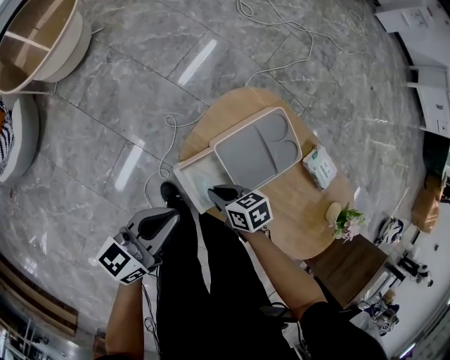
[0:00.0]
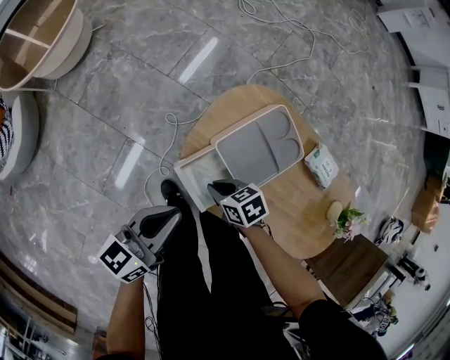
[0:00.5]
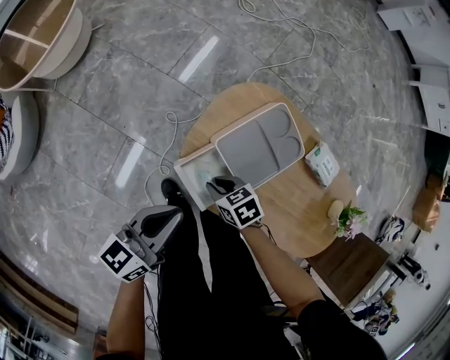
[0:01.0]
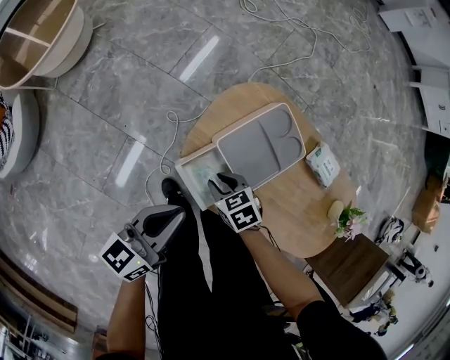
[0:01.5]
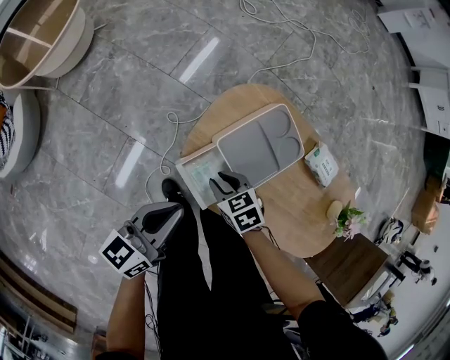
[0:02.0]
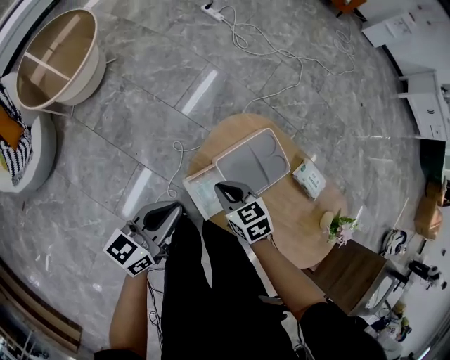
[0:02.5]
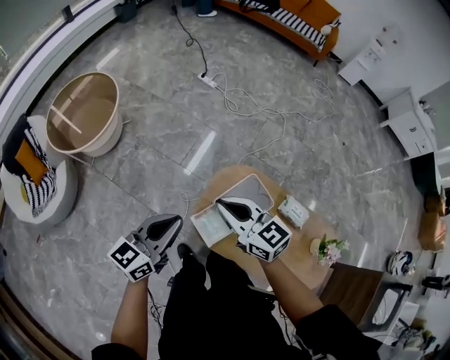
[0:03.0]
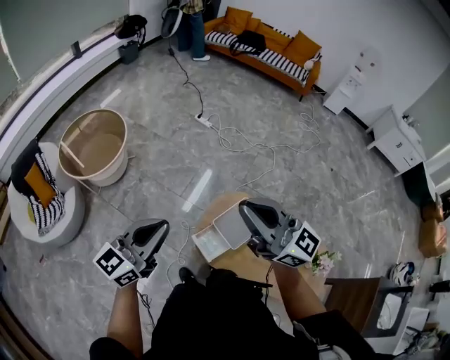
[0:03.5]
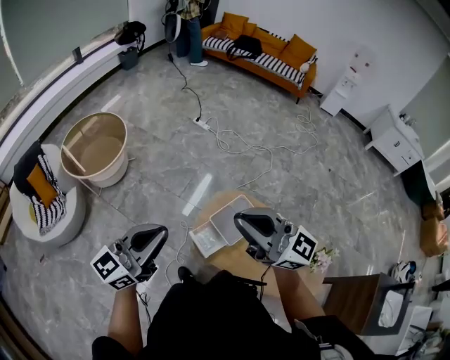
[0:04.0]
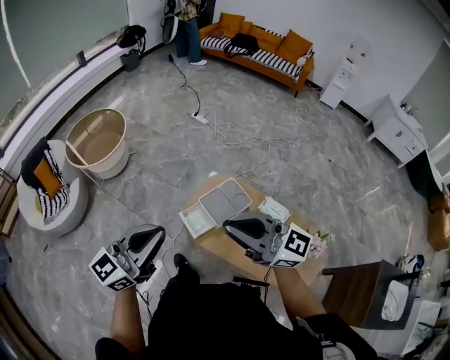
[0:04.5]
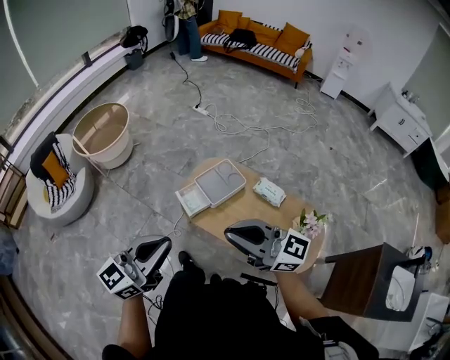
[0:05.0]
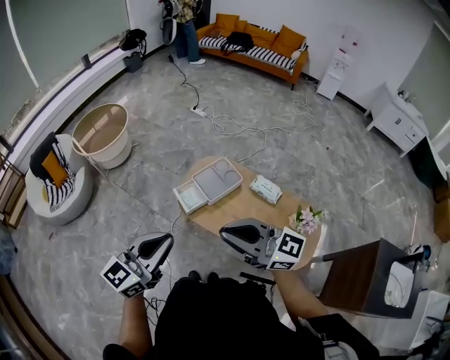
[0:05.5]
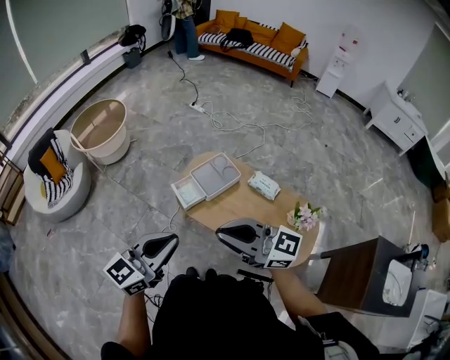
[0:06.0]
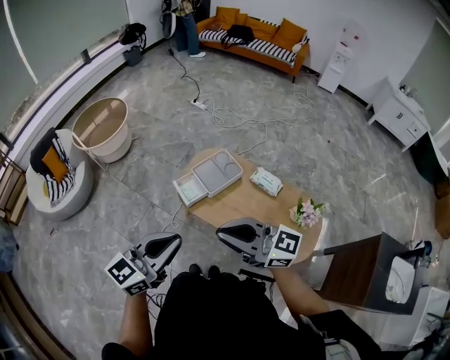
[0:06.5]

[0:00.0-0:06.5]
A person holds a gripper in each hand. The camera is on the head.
0:00.0 to 0:02.0: The right gripper turns by about 20 degrees.
0:02.0 to 0:04.5: The left gripper goes approximately 50 cm upward and backward, and changes its angle by some 40 degrees, while the right gripper goes approximately 70 cm upward, angles its fingers upward, by some 70 degrees, and closes its fingers.
0:04.5 to 0:06.5: Both grippers move backward, about 20 cm.

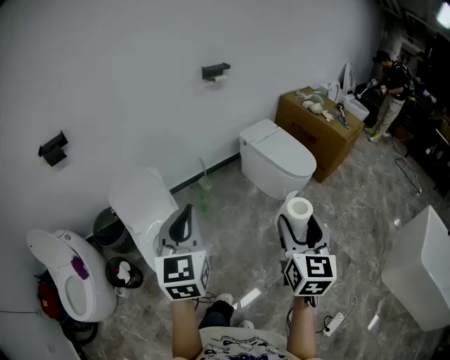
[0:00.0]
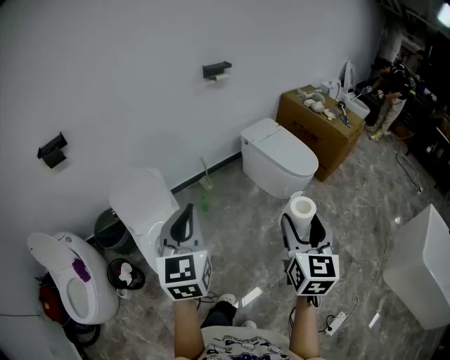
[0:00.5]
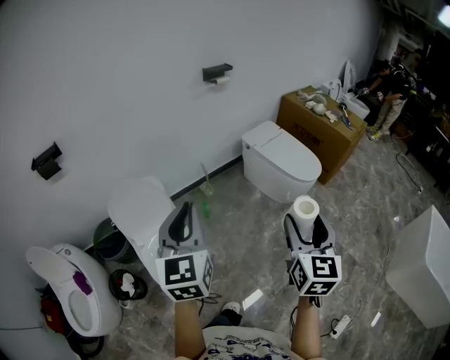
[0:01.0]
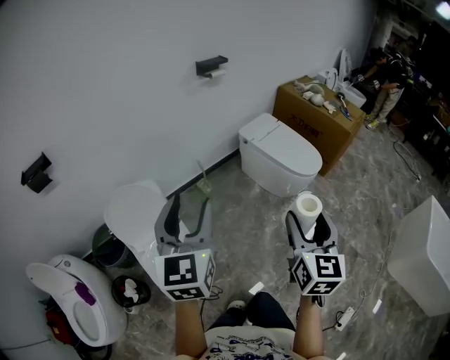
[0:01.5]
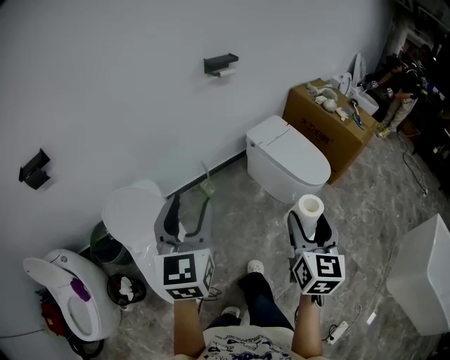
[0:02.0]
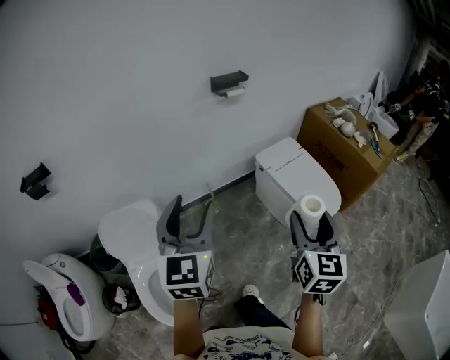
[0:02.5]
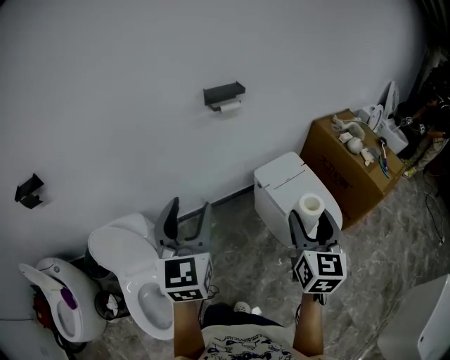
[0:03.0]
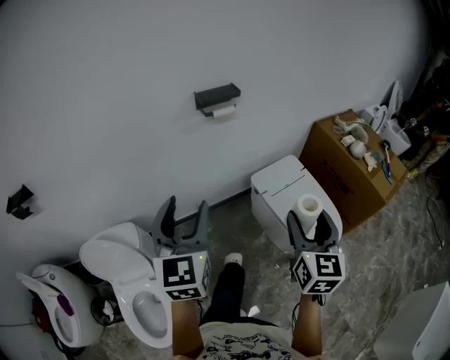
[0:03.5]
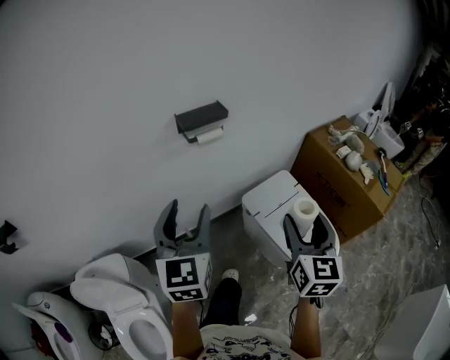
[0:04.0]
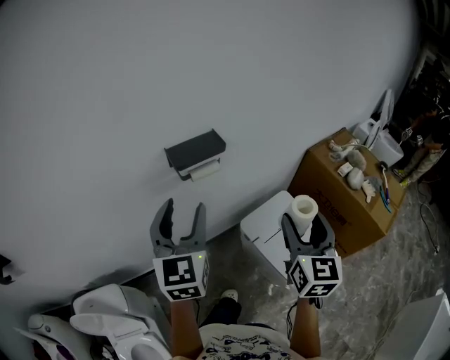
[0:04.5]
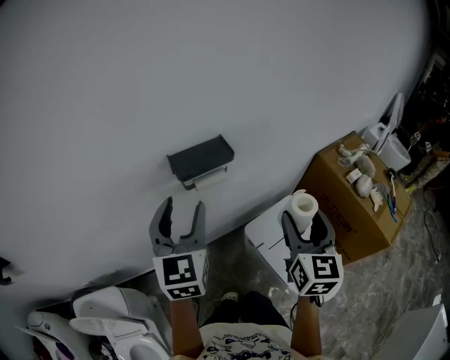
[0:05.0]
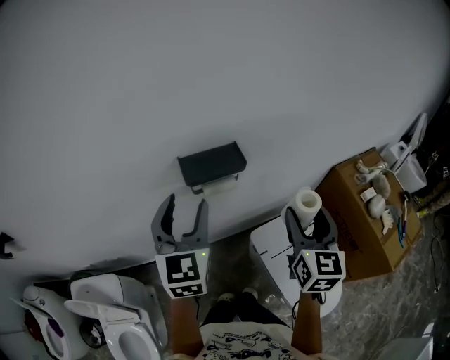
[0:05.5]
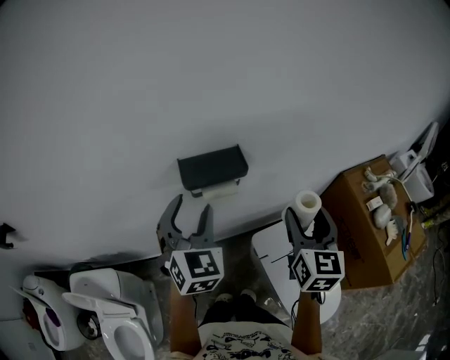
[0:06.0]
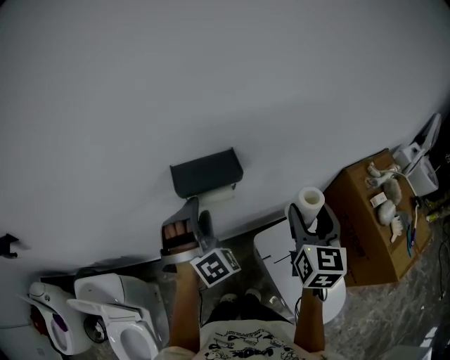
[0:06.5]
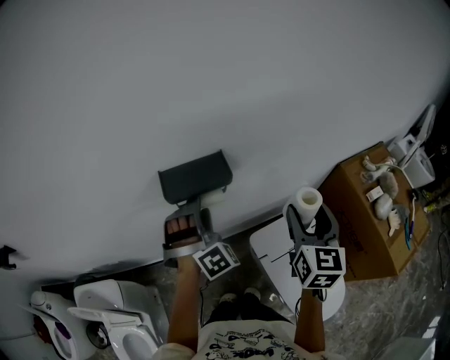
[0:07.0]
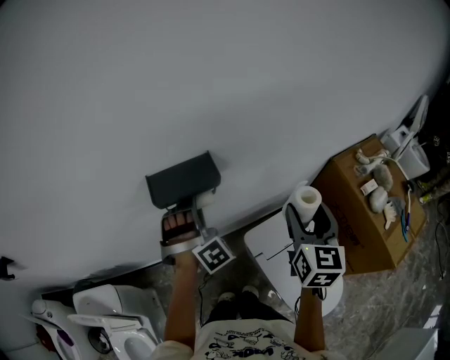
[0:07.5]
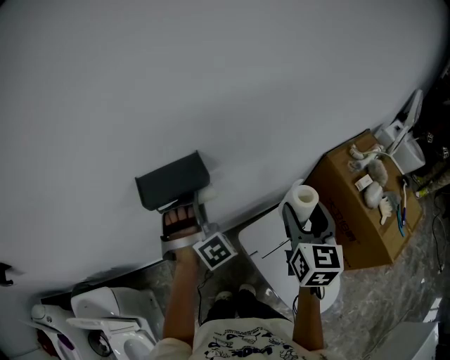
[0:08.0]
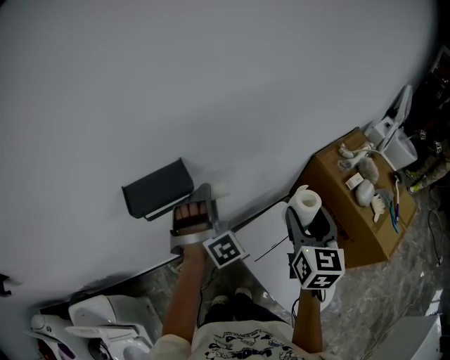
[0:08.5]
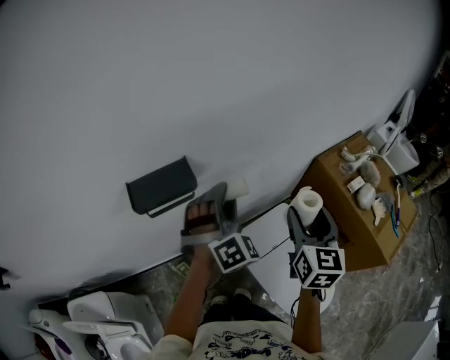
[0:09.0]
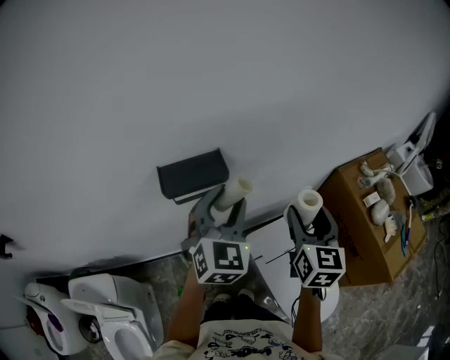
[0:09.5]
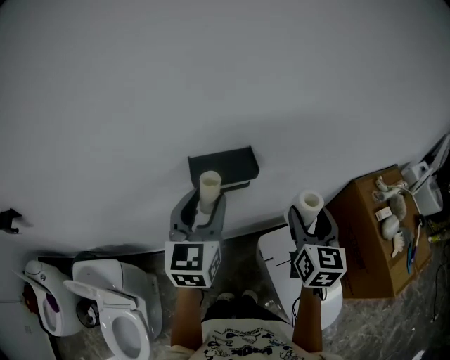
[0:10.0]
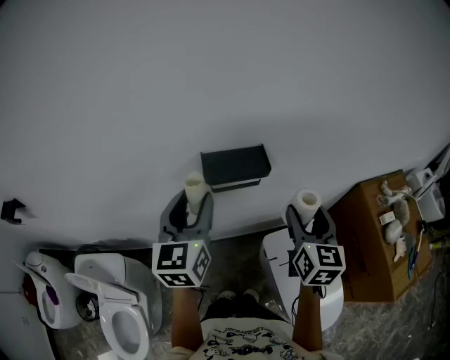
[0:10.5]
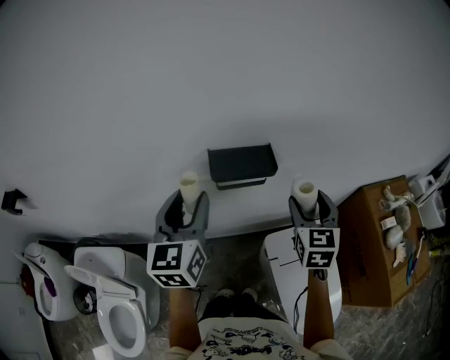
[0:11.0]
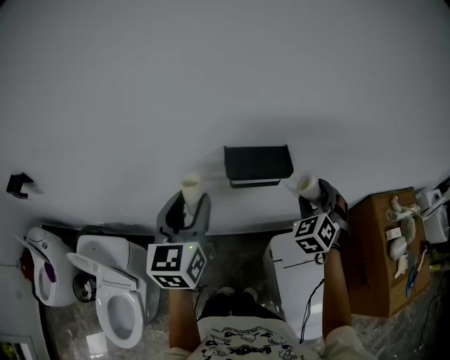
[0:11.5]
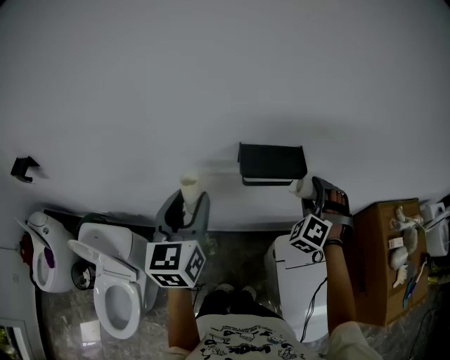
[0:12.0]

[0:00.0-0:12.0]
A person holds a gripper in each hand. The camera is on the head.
0:00.0 to 0:02.0: Both grippers travel together forward, some 20 cm. The left gripper opens its fingers.
0:02.0 to 0:04.0: The pair of grippers is taken forward, about 50 cm.
0:04.0 to 0:06.0: The two grippers go roughly 30 cm forward. The left gripper swivels some 30 degrees.
0:06.0 to 0:08.0: The left gripper travels downward, to the right and forward by some 15 cm, and rotates around the line of its fingers by roughly 50 degrees, clockwise from behind. The right gripper goes about 10 cm to the right.
0:08.0 to 0:10.0: The right gripper travels to the left by about 10 cm; the left gripper moves upward, backward and to the left, roughly 15 cm, and twists approximately 80 degrees counterclockwise, seen from behind.
0:10.0 to 0:12.0: The left gripper moves to the left, about 15 cm. The right gripper moves forward, to the left and downward, roughly 15 cm, and rolls counterclockwise, seen from behind, by roughly 90 degrees.

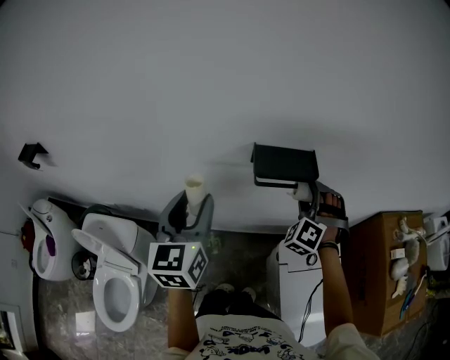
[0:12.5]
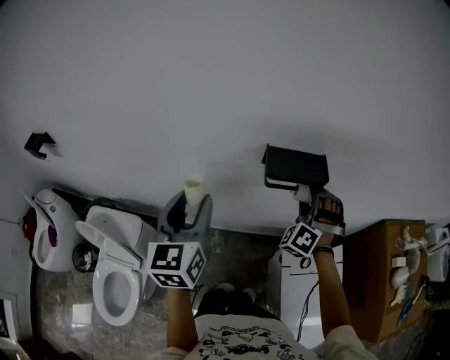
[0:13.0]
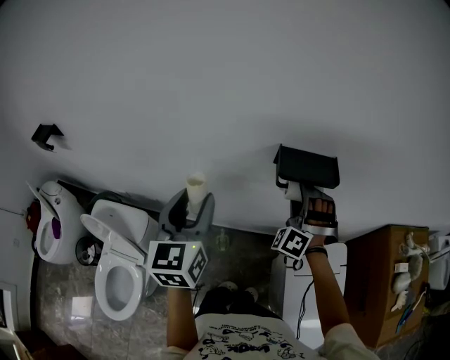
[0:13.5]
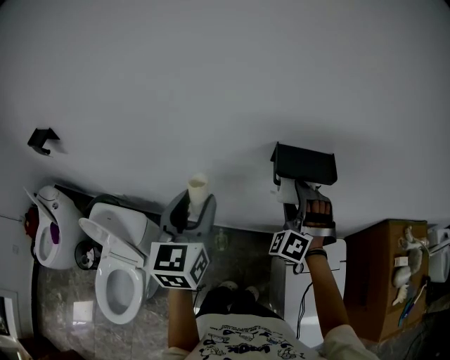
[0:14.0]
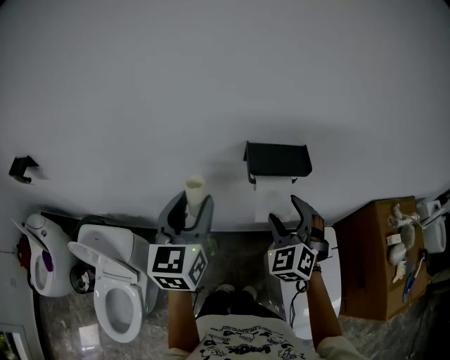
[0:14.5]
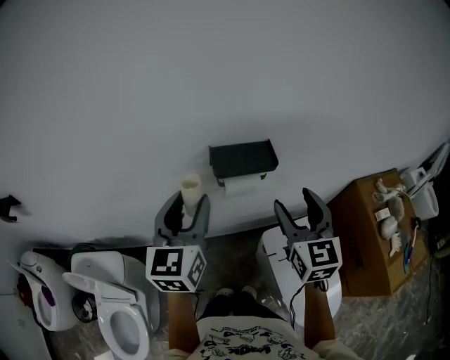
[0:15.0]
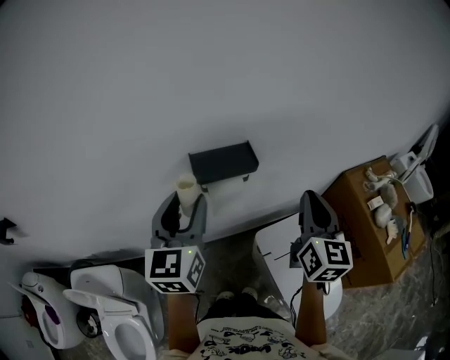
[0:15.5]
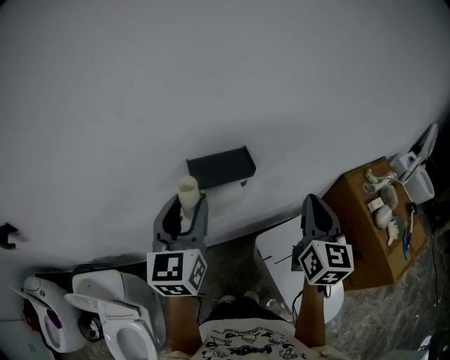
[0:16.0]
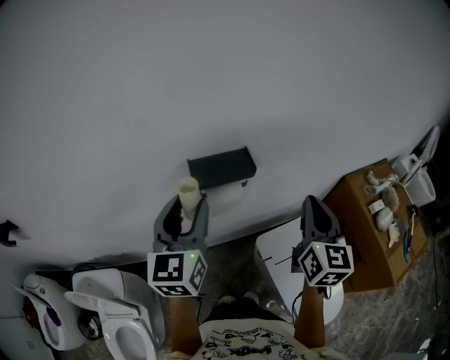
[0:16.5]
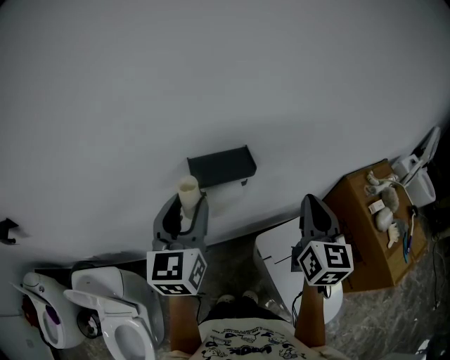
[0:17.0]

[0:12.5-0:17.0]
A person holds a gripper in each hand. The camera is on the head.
0:12.5 to 0:14.5: The right gripper shifts roughly 10 cm backward and to the left, and rotates roughly 30 degrees.
0:14.5 to 0:17.0: The left gripper travels to the right by some 10 cm, while the right gripper travels to the right and upward by some 20 cm, rolls clockwise, seen from behind, by about 60 degrees, and closes.

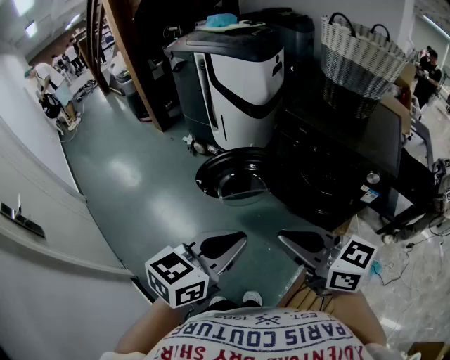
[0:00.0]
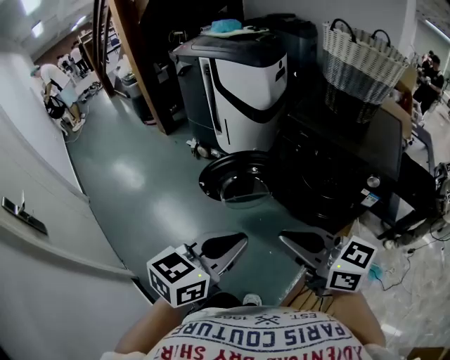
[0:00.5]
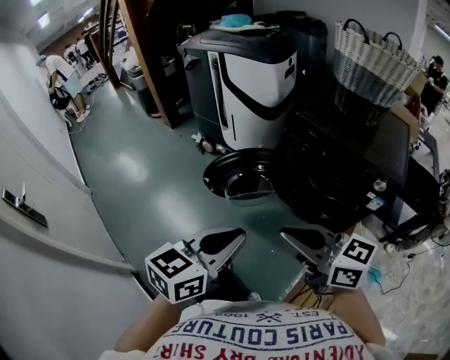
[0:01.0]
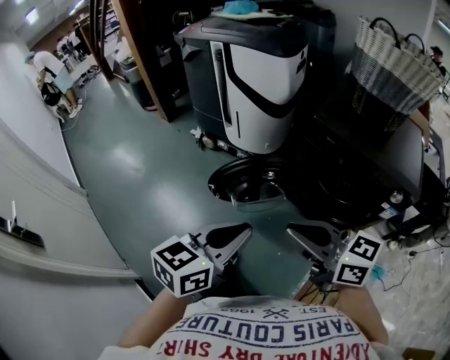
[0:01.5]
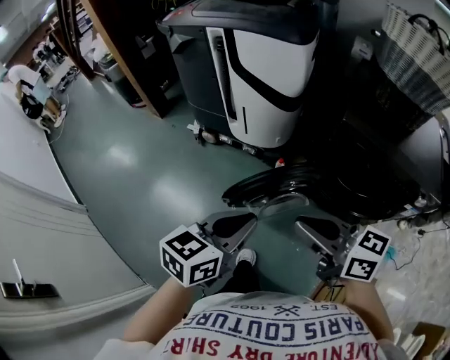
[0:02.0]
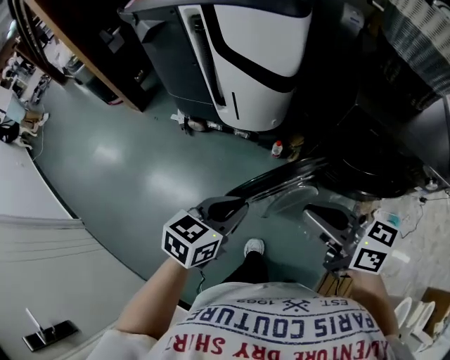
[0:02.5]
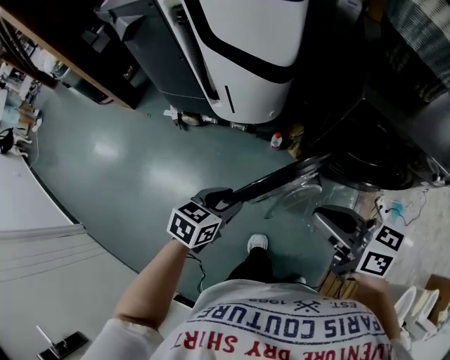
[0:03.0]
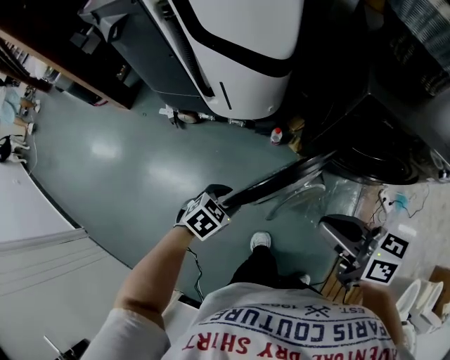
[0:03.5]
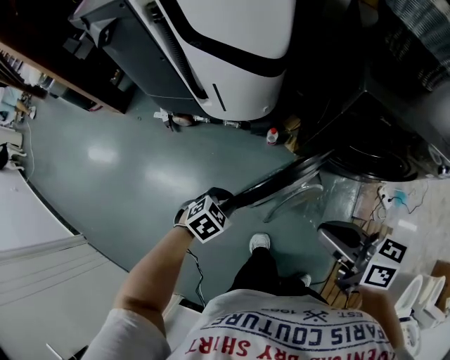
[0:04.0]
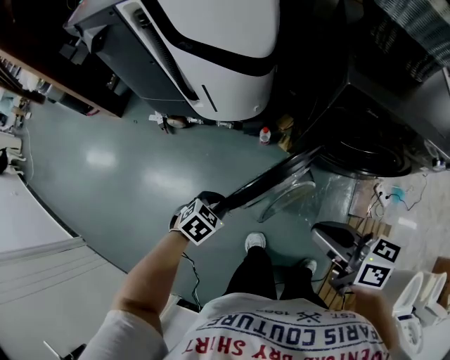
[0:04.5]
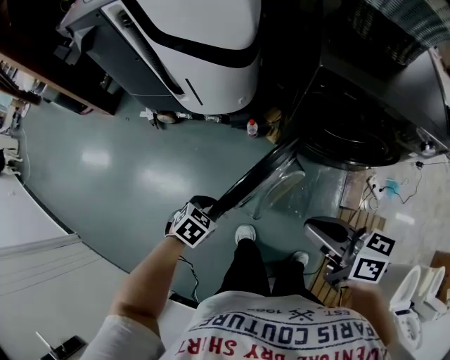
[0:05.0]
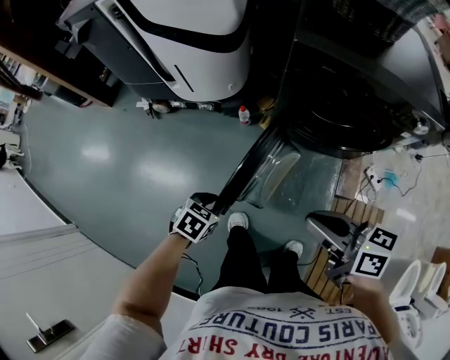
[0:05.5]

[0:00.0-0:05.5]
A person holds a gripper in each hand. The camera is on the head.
0:00.0 to 0:02.0: The grippers both shift forward and to the left by approximately 30 cm.
0:02.0 to 0:03.5: The left gripper goes about 35 cm downward and forward, tilts its fingers some 40 degrees downward, and opens its fingers, while the right gripper moves downward and forward, some 15 cm, and swivels some 20 degrees.
0:03.5 to 0:05.5: Both grippers move to the right and backward, roughly 15 cm. The left gripper closes up.
